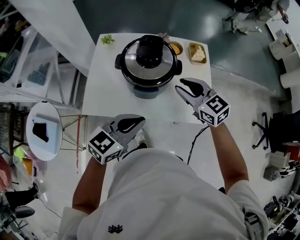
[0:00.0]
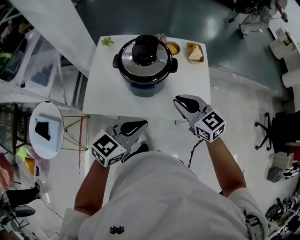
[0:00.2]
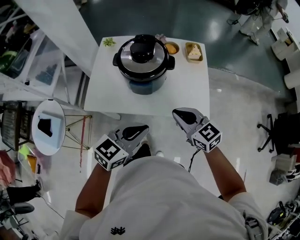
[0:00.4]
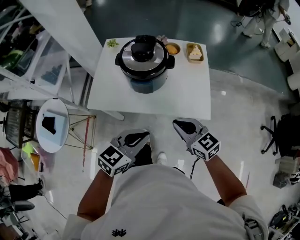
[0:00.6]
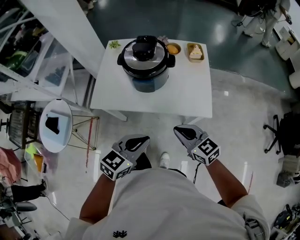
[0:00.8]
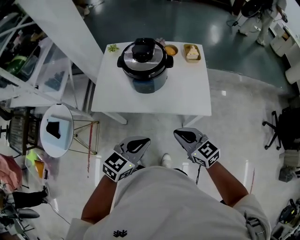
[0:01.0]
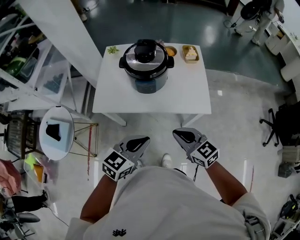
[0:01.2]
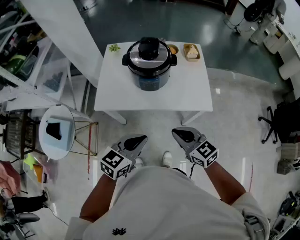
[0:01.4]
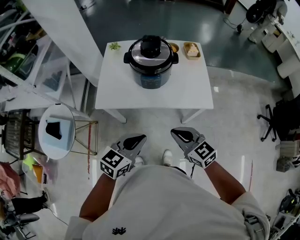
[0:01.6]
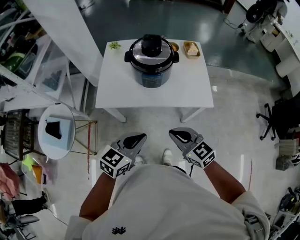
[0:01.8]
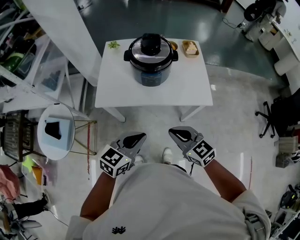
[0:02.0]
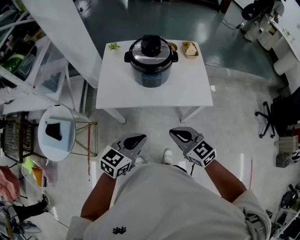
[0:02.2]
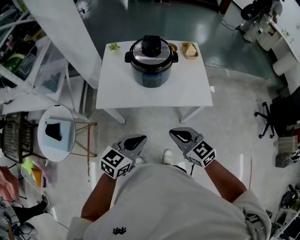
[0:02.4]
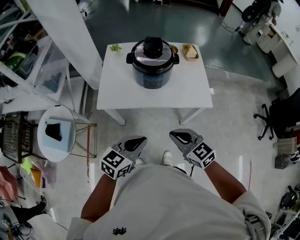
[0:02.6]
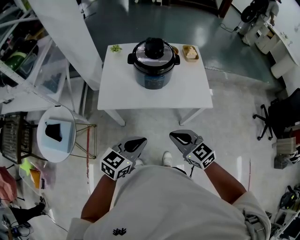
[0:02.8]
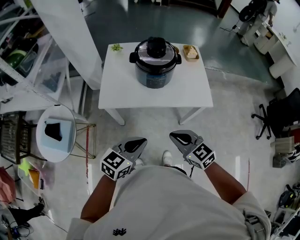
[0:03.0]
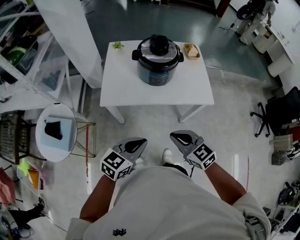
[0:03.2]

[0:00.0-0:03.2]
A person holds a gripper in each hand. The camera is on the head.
0:00.0 to 0:01.6: The right gripper is displaced backward by some 30 cm. Meanwhile the left gripper is displaced backward by some 20 cm.
0:01.6 to 0:03.2: The grippers both shift to the left and backward by some 10 cm.

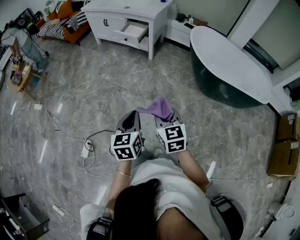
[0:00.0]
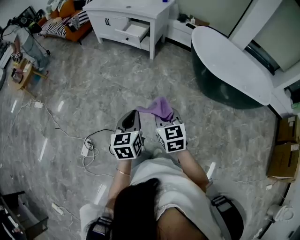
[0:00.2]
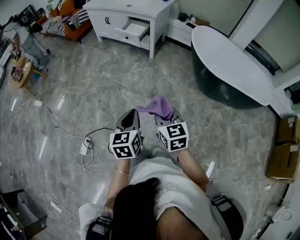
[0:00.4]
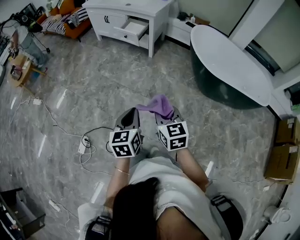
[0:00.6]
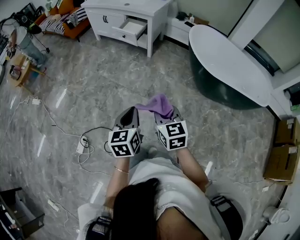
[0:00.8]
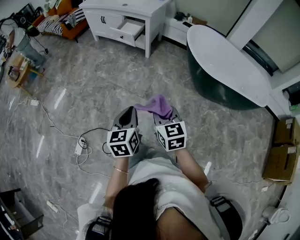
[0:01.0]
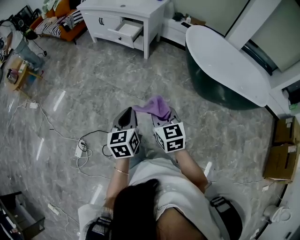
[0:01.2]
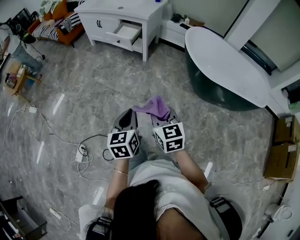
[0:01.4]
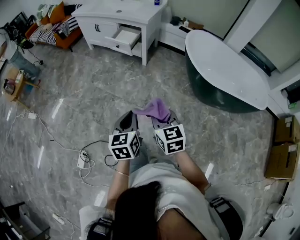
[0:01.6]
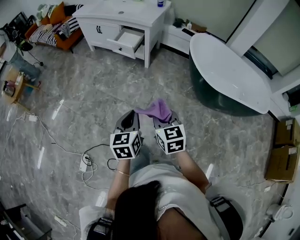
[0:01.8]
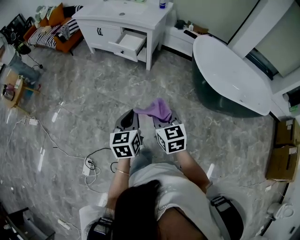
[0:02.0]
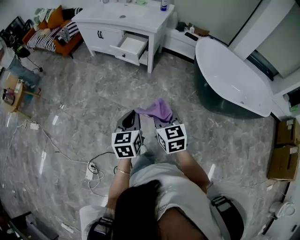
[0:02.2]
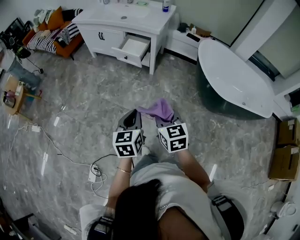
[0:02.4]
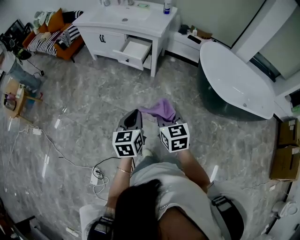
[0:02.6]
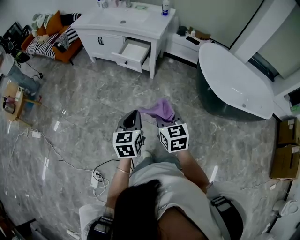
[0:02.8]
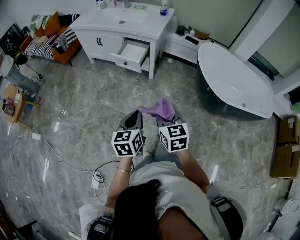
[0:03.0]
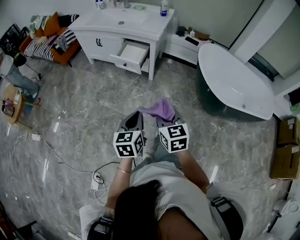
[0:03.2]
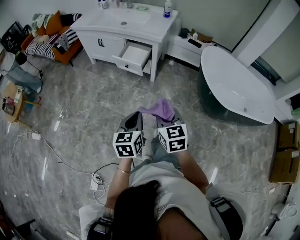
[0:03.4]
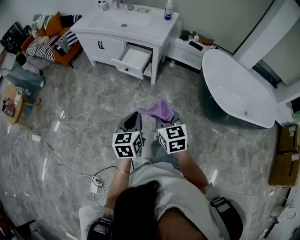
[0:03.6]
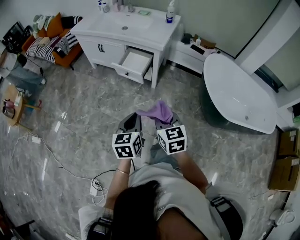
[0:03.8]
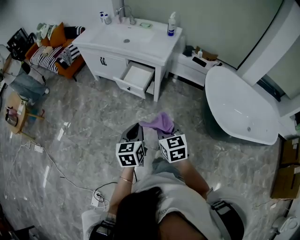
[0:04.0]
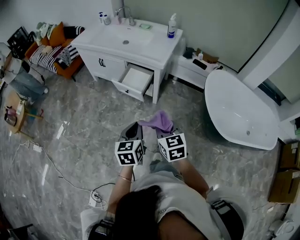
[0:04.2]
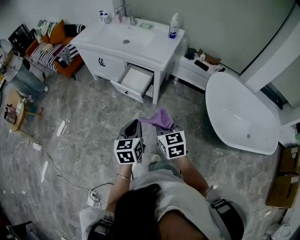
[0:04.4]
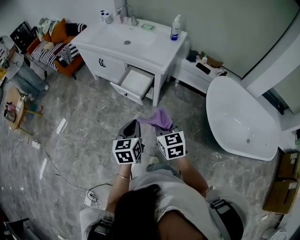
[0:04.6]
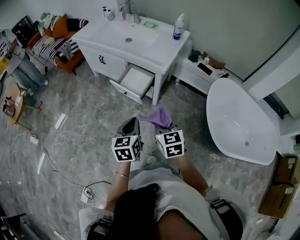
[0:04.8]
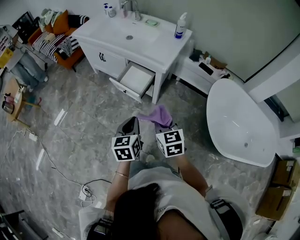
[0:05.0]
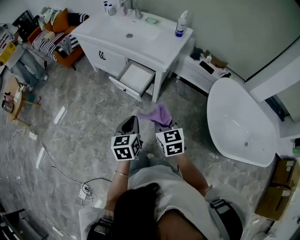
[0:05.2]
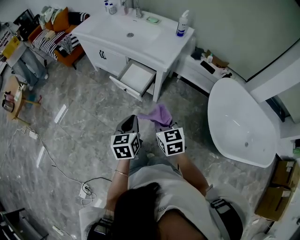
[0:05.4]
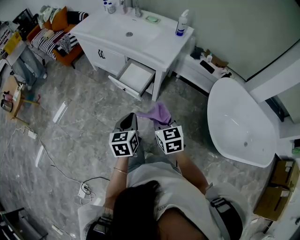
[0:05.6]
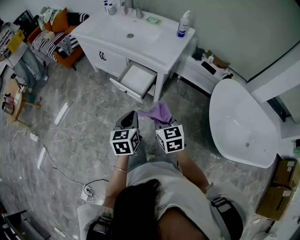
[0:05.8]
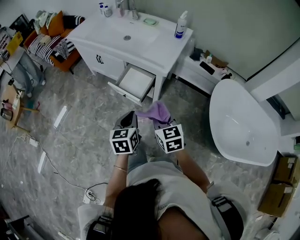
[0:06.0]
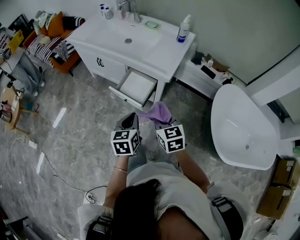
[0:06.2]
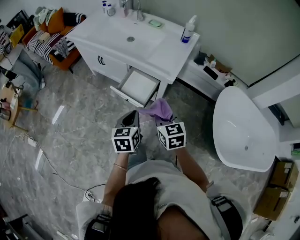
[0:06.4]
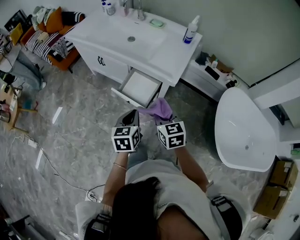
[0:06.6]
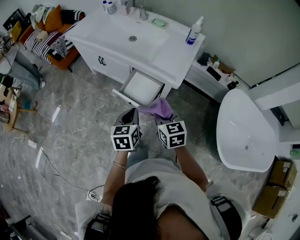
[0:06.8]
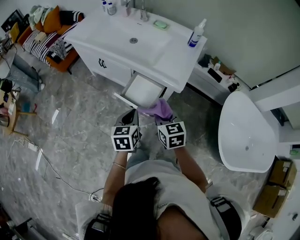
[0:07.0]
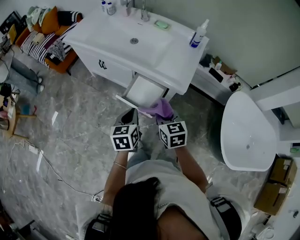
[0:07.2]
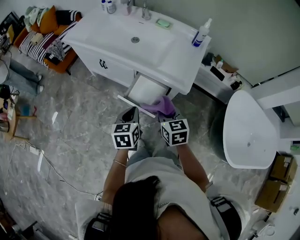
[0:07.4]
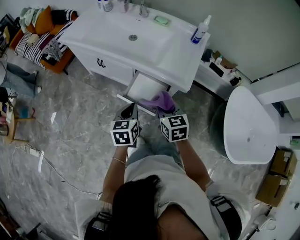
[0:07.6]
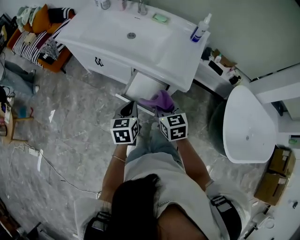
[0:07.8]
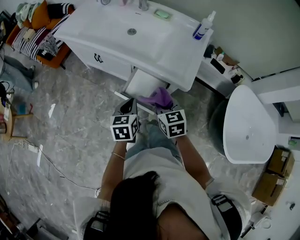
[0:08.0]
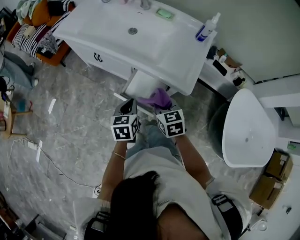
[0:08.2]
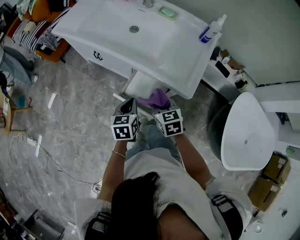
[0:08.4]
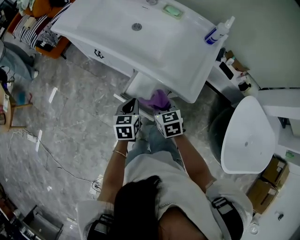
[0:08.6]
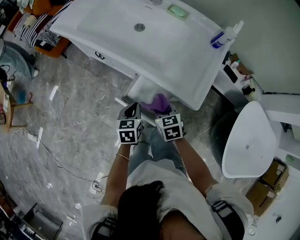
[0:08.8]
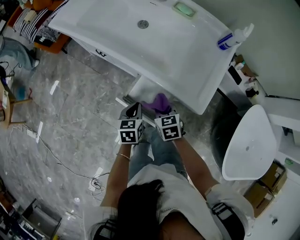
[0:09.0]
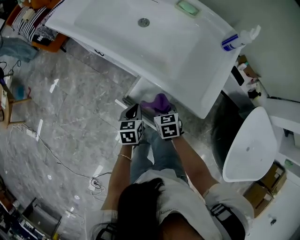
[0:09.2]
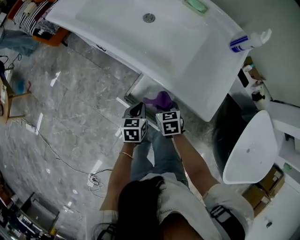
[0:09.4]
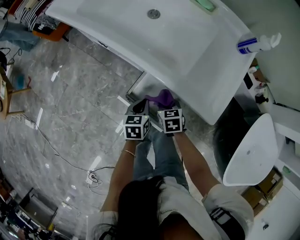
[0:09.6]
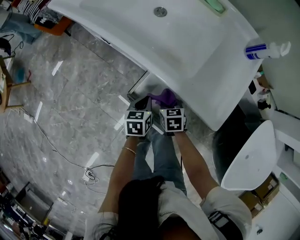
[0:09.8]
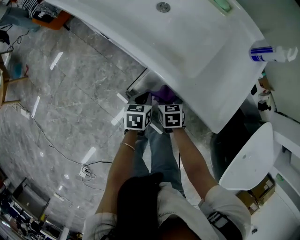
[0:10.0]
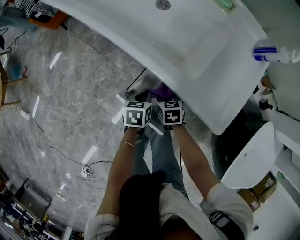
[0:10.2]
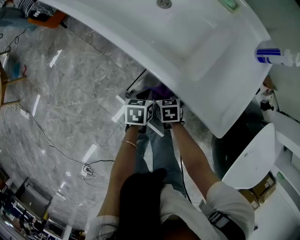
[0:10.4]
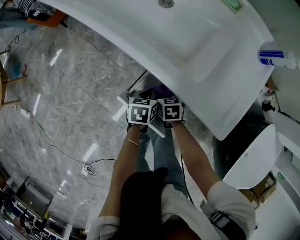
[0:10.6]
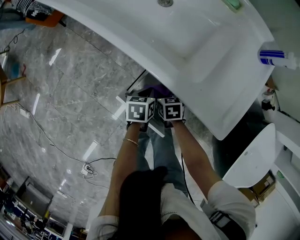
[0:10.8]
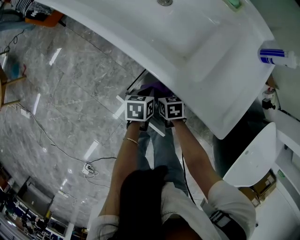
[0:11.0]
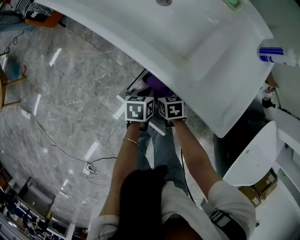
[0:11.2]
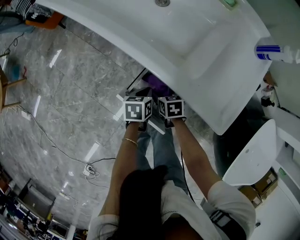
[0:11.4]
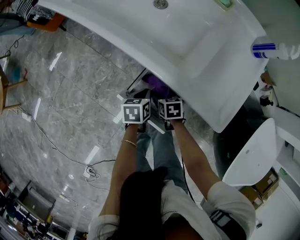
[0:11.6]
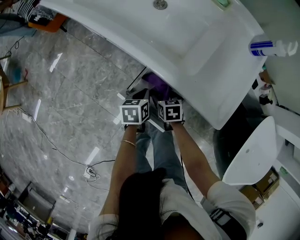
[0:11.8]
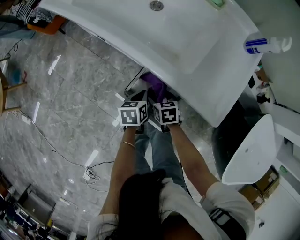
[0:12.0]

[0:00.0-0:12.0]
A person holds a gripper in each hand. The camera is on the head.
0:00.0 to 0:01.6: The grippers both shift forward by approximately 10 cm.
0:01.6 to 0:03.0: Both grippers move forward and to the left, approximately 20 cm.
0:03.0 to 0:04.4: The grippers both shift forward by about 25 cm.
0:04.4 to 0:06.0: Both grippers move forward, approximately 15 cm.
0:06.0 to 0:07.6: Both grippers travel together forward and to the left, approximately 20 cm.
0:07.6 to 0:09.0: Both grippers travel together downward and forward, some 20 cm. The right gripper changes its angle by about 20 degrees.
0:09.0 to 0:10.4: The left gripper shifts some 15 cm downward and forward. Meanwhile the right gripper goes roughly 20 cm downward.
0:10.4 to 0:12.0: The right gripper opens up.

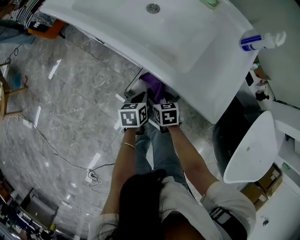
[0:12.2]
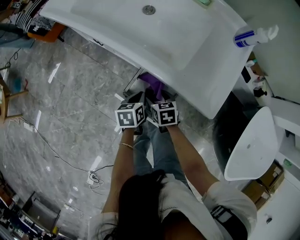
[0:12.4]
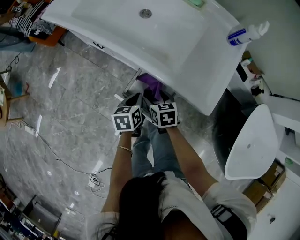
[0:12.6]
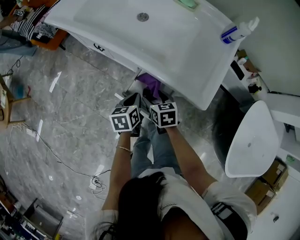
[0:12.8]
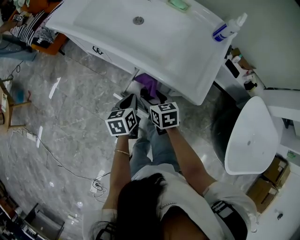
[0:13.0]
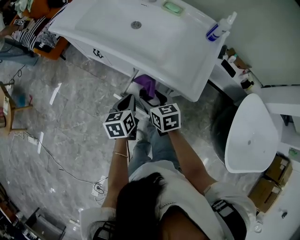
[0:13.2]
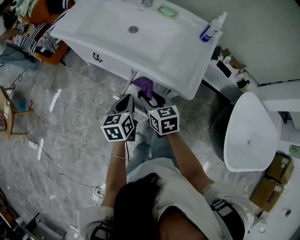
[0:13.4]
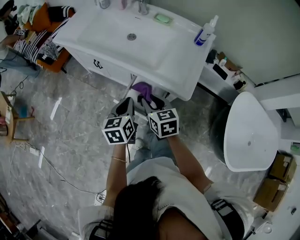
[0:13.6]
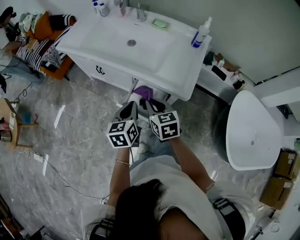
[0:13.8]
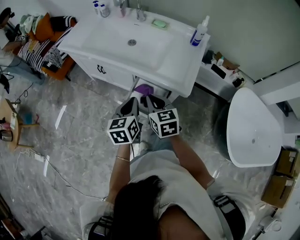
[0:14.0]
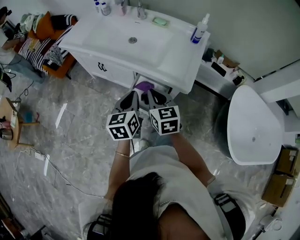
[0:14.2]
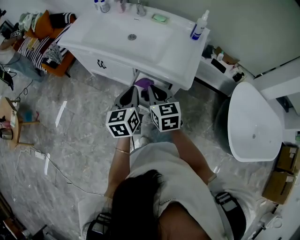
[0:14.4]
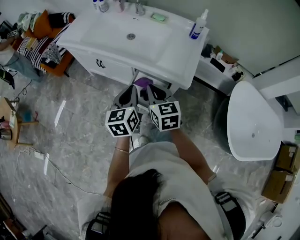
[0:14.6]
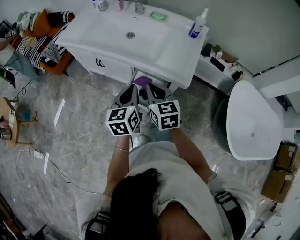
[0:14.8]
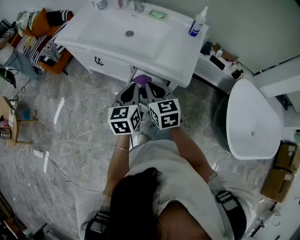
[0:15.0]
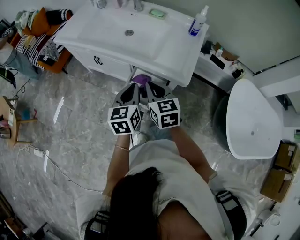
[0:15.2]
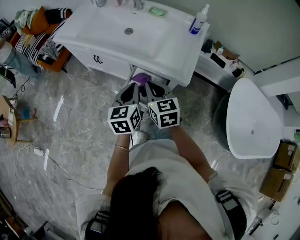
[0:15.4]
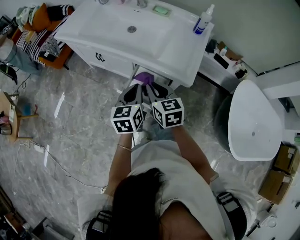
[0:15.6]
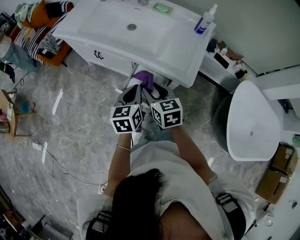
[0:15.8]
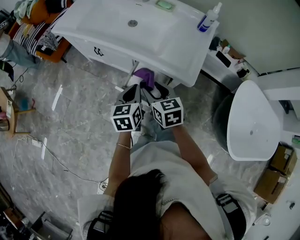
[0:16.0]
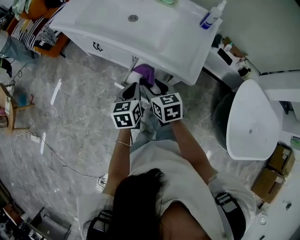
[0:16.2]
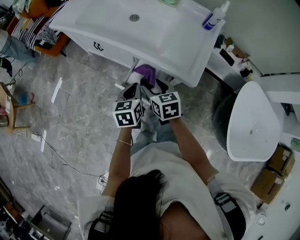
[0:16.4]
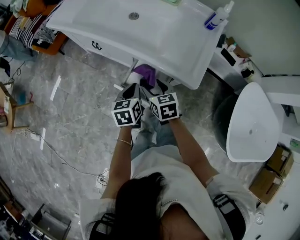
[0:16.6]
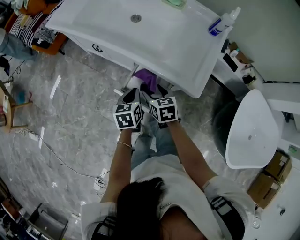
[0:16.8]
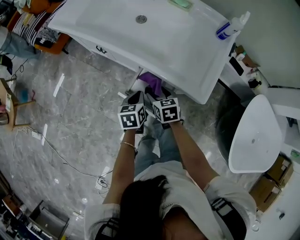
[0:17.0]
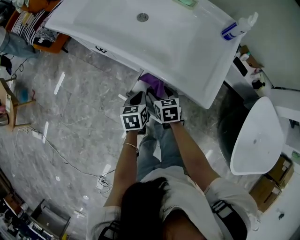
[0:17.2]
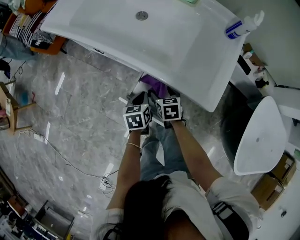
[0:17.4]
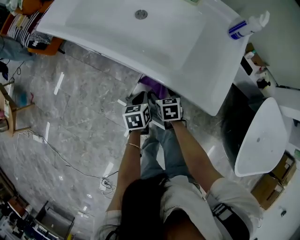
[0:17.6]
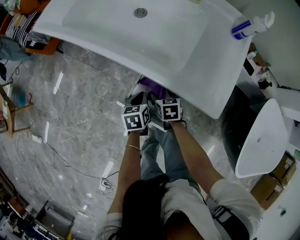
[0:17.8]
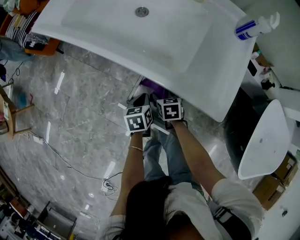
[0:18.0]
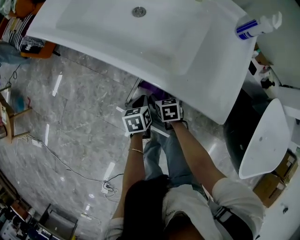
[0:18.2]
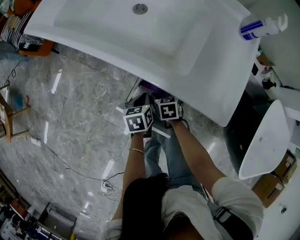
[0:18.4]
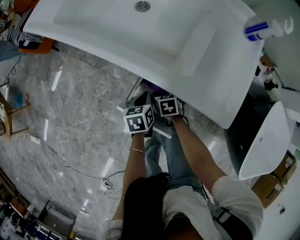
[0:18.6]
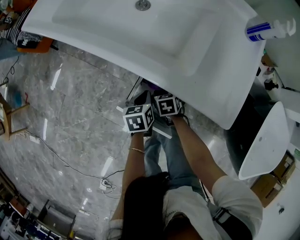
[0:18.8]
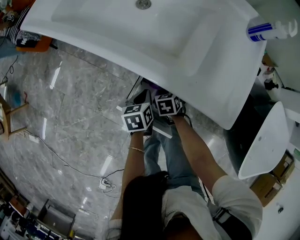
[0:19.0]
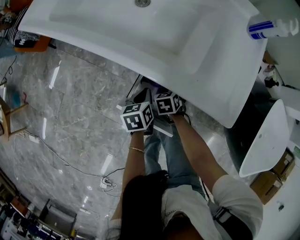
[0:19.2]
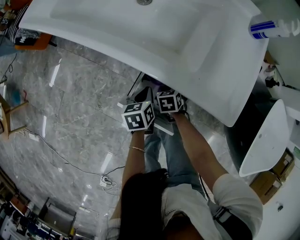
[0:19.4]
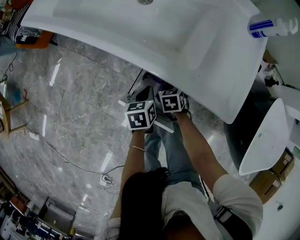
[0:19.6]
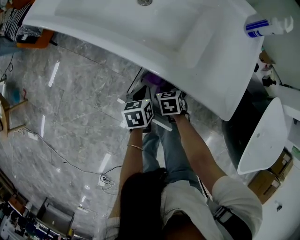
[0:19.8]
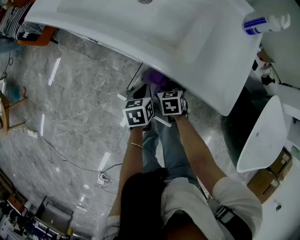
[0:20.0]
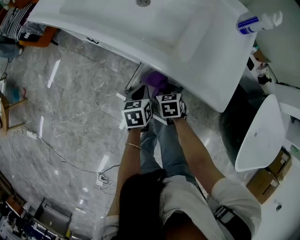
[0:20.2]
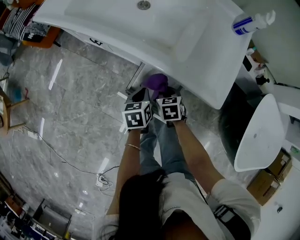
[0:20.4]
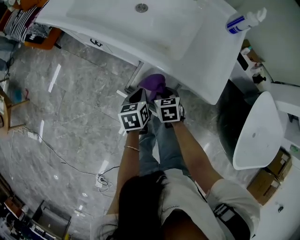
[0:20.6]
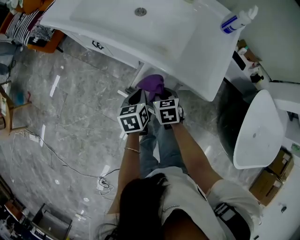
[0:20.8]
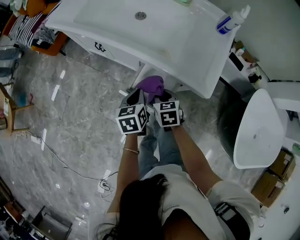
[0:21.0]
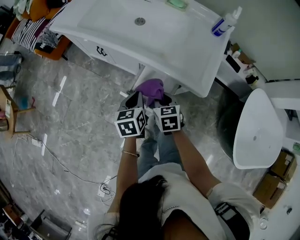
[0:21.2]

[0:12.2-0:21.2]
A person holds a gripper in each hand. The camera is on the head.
0:12.2 to 0:13.8: Both grippers move upward, some 25 cm. The right gripper swivels some 30 degrees, and closes. Meanwhile the left gripper turns by roughly 30 degrees.
0:13.8 to 0:15.2: The grippers stay close to where they were, moving slightly.
0:15.2 to 0:16.6: The two grippers go roughly 15 cm downward. The right gripper changes its angle by approximately 20 degrees, and opens.
0:16.6 to 0:18.2: Both grippers move downward, about 20 cm.
0:18.2 to 0:19.8: The right gripper closes its fingers.
0:19.8 to 0:21.2: The two grippers go roughly 20 cm upward and backward.
